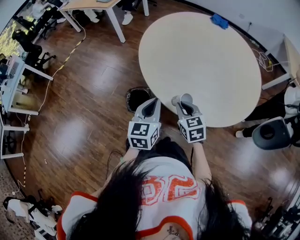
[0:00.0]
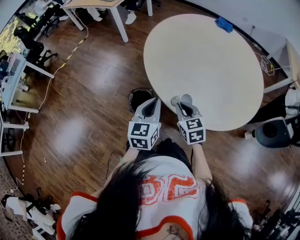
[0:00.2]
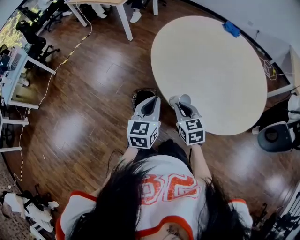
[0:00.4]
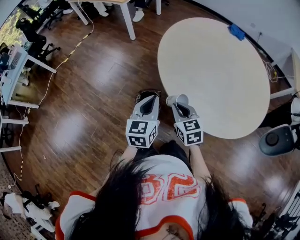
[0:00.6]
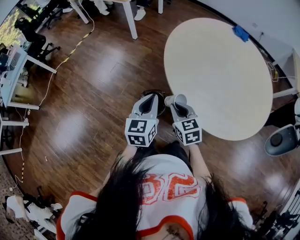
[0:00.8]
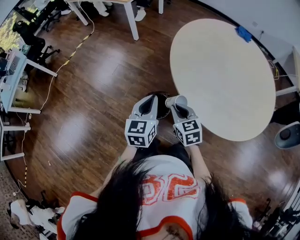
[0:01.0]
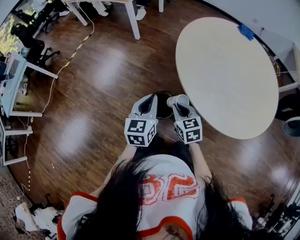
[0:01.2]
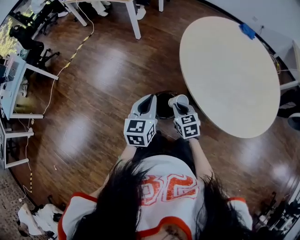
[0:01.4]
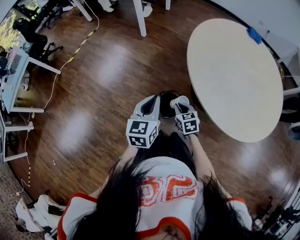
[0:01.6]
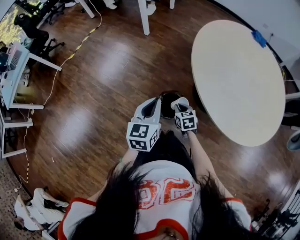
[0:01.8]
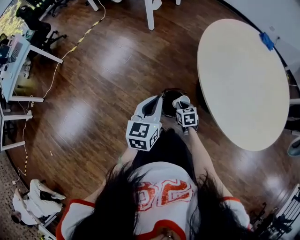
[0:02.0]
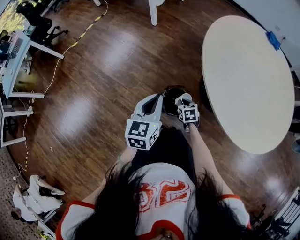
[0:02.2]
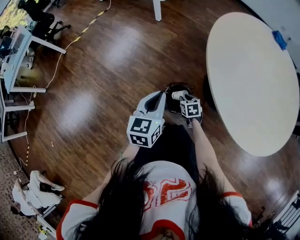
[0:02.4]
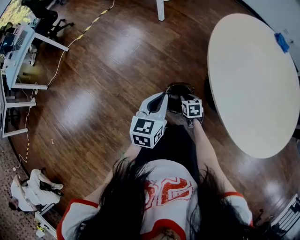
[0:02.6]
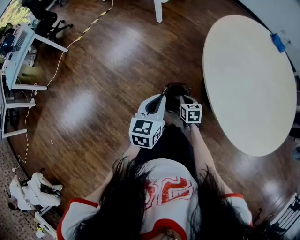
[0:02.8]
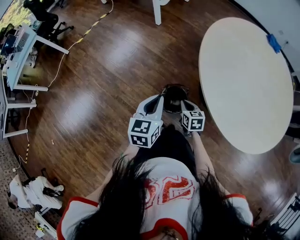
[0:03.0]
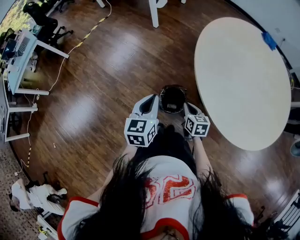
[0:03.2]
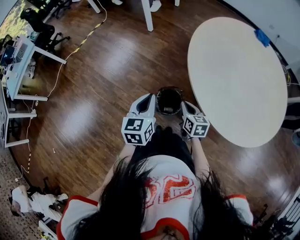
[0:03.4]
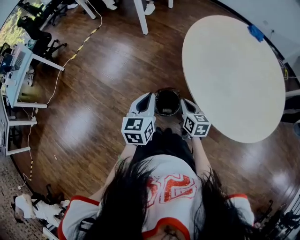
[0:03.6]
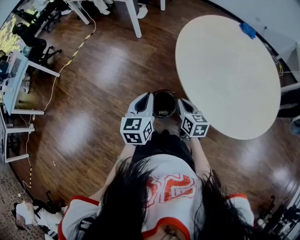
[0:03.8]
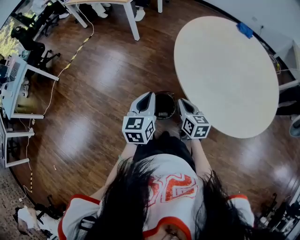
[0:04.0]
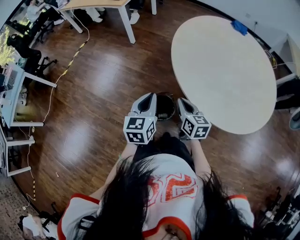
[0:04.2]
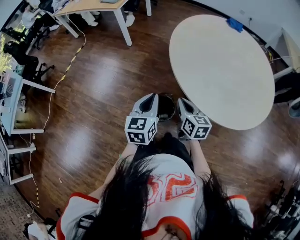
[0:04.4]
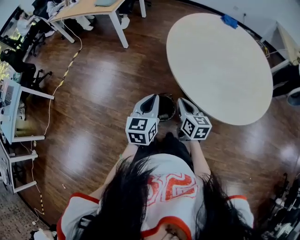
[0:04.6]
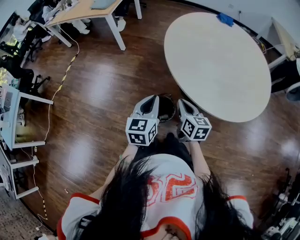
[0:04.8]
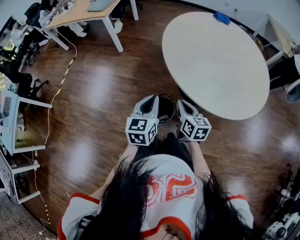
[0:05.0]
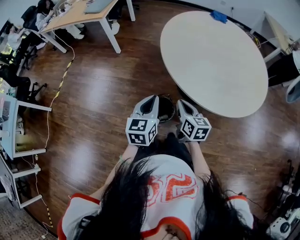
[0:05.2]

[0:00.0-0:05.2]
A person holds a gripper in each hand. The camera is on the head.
0:00.0 to 0:01.8: The left gripper moves to the left and forward, roughly 25 cm; the right gripper shifts about 30 cm to the left, downward and forward.
0:01.8 to 0:03.4: The right gripper shifts about 10 cm upward, and turns by some 20 degrees.
0:03.4 to 0:05.2: The left gripper moves approximately 5 cm, and changes its angle by approximately 20 degrees. The right gripper travels upward by about 10 cm, and swivels some 20 degrees.

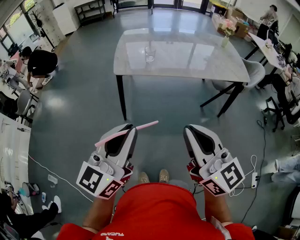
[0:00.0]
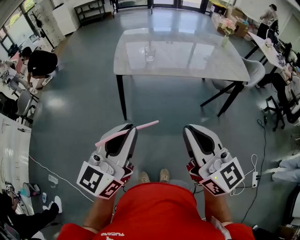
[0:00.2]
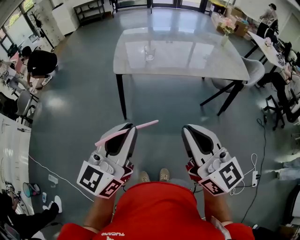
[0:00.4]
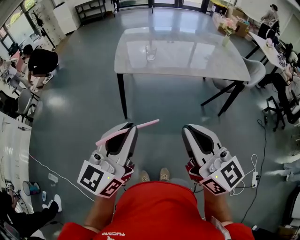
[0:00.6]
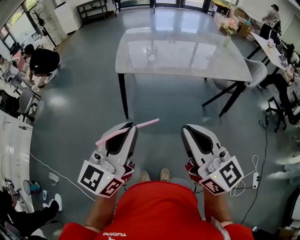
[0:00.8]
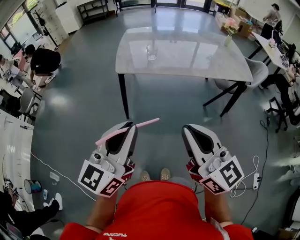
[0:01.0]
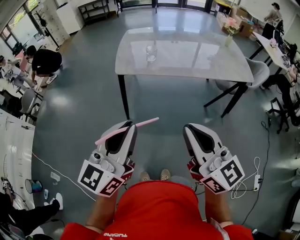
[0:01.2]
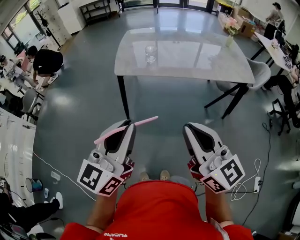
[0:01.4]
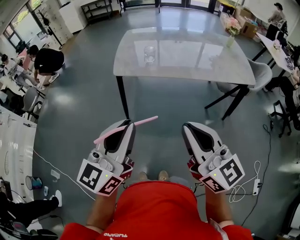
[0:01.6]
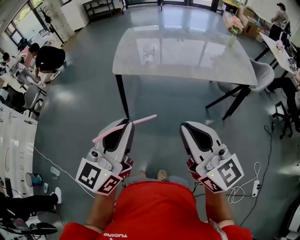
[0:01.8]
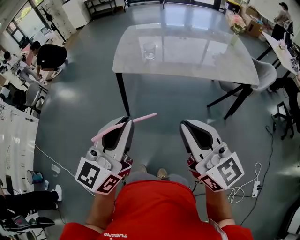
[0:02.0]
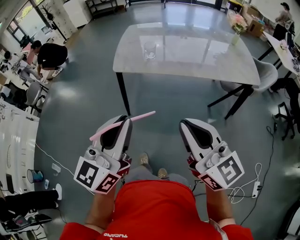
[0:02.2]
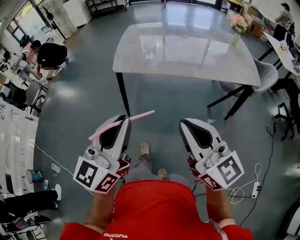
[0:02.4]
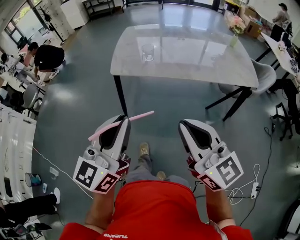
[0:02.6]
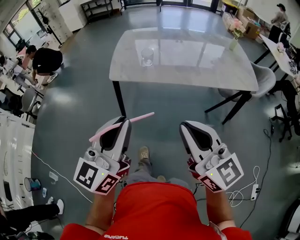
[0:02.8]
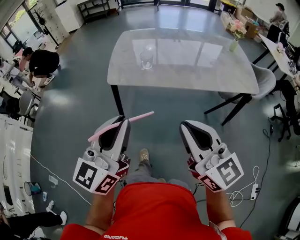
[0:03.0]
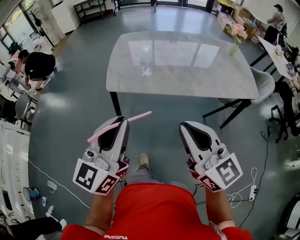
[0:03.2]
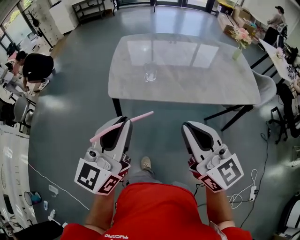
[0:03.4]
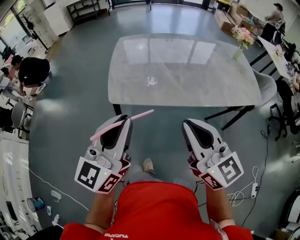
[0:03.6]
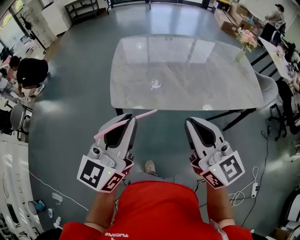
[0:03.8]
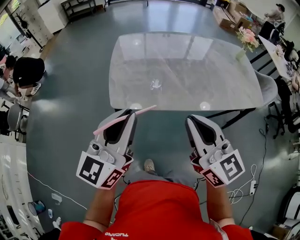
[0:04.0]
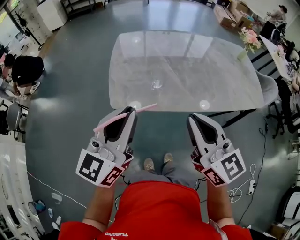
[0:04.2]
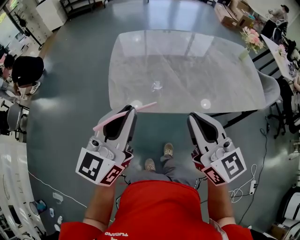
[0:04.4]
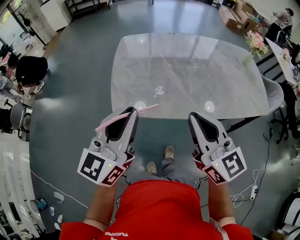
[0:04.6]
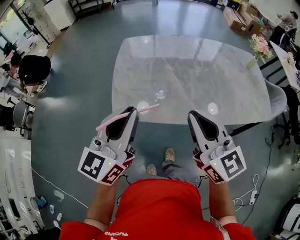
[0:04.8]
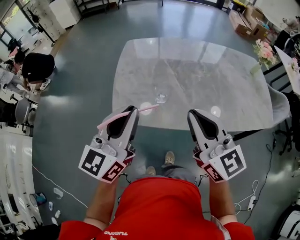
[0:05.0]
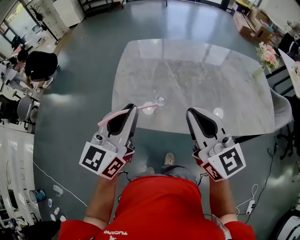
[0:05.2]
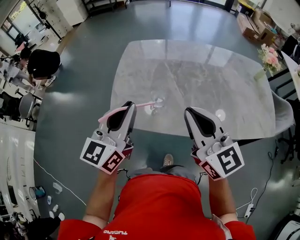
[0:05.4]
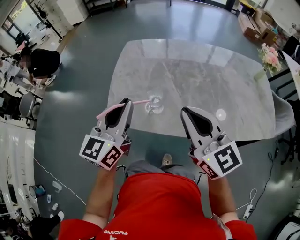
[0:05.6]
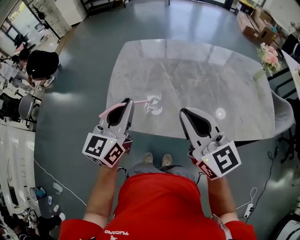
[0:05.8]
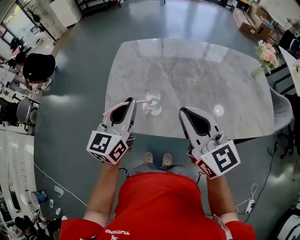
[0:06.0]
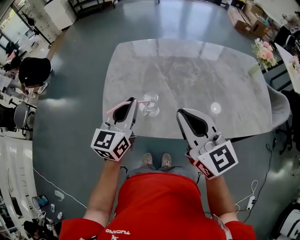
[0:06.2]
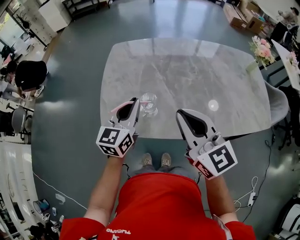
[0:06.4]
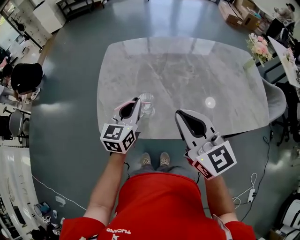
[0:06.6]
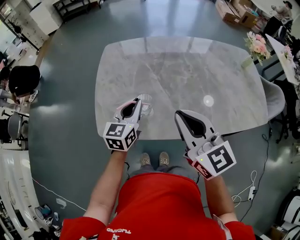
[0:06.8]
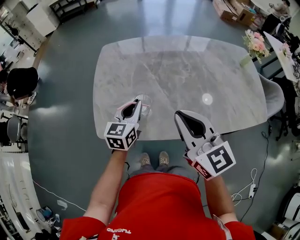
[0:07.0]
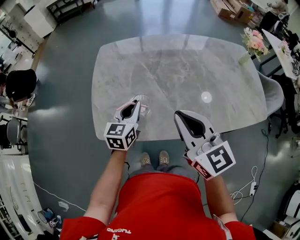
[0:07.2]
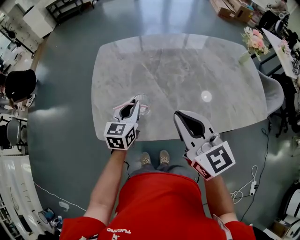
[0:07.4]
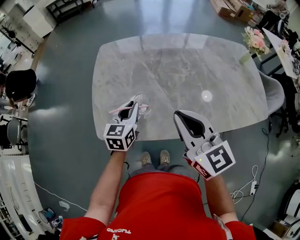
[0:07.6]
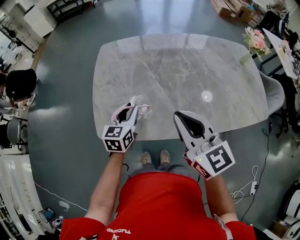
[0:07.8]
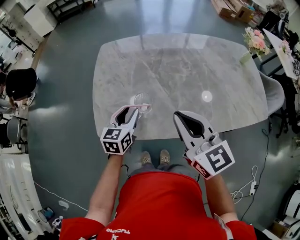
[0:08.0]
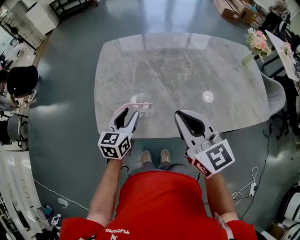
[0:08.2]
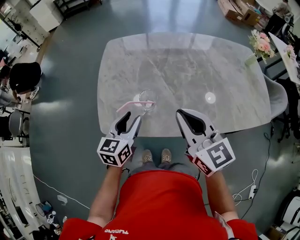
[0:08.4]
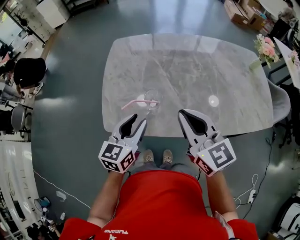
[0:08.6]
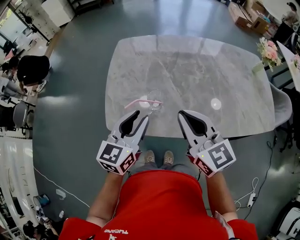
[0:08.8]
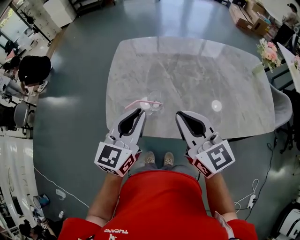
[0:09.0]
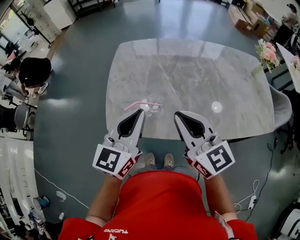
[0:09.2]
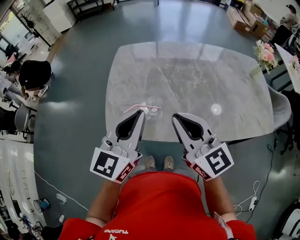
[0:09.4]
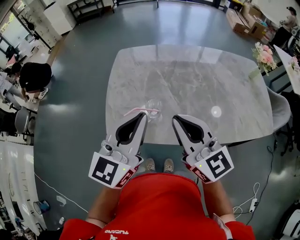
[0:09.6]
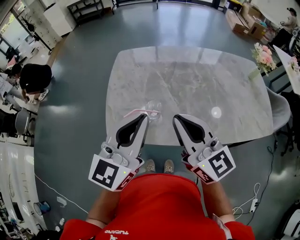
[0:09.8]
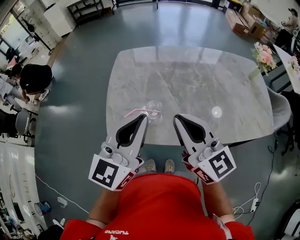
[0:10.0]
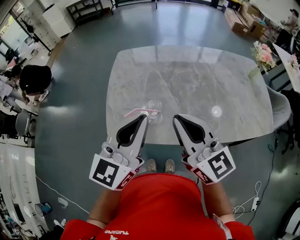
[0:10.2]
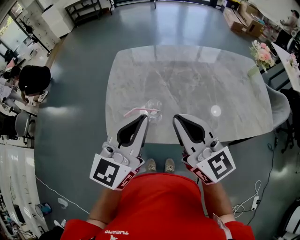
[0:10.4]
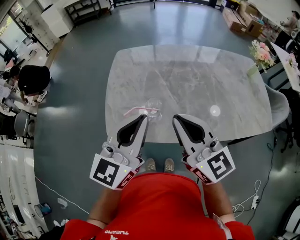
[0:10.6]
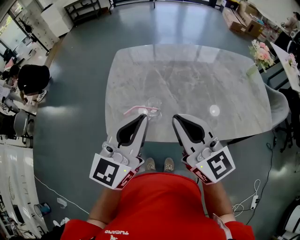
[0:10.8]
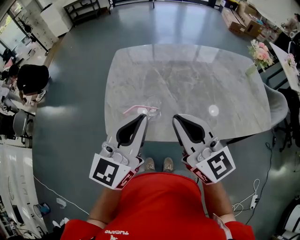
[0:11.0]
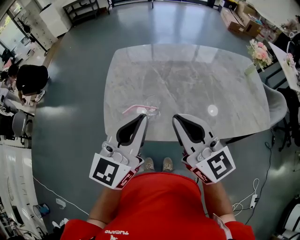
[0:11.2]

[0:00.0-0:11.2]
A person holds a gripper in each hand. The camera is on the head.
0:00.0 to 0:01.6: Both grippers travel together to the right, roughly 5 cm.
0:01.6 to 0:03.2: Both grippers move forward, about 15 cm.
0:03.2 to 0:04.8: Both grippers travel together forward, roughly 25 cm.
0:04.8 to 0:06.4: The right gripper moves forward, roughly 10 cm, while the left gripper shifts about 20 cm forward, downward and to the right.
0:06.4 to 0:08.0: The left gripper moves downward, about 10 cm, and opens.
0:08.0 to 0:09.6: The left gripper travels upward by approximately 25 cm, rotates approximately 30 degrees, and closes its fingers, while the right gripper changes place by about 5 cm.
0:09.6 to 0:11.2: There are only small adjustments of the grippers.

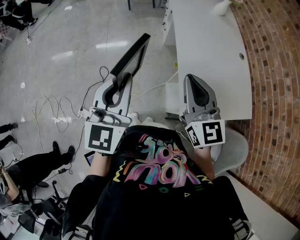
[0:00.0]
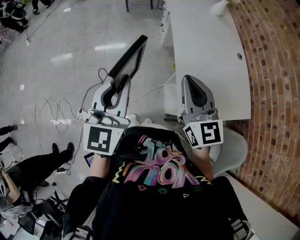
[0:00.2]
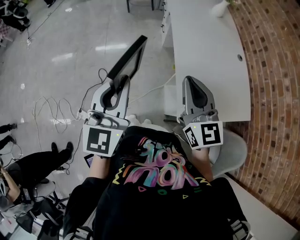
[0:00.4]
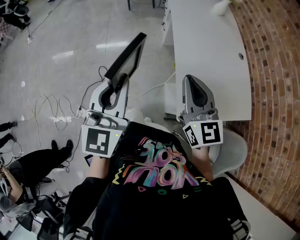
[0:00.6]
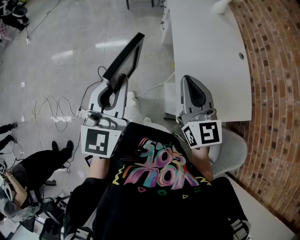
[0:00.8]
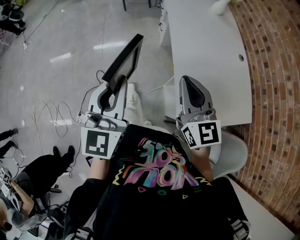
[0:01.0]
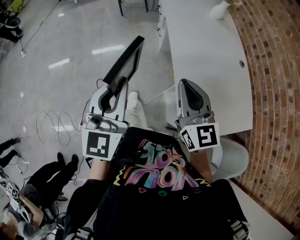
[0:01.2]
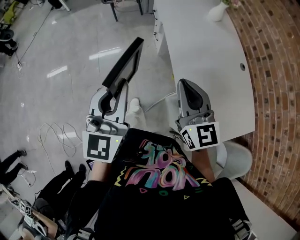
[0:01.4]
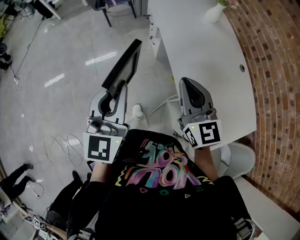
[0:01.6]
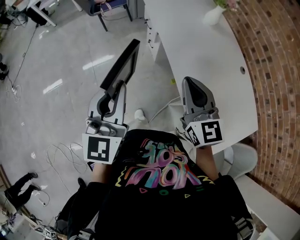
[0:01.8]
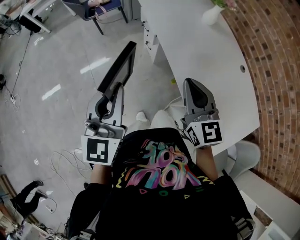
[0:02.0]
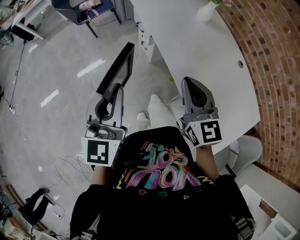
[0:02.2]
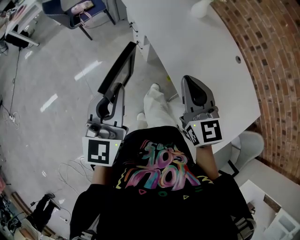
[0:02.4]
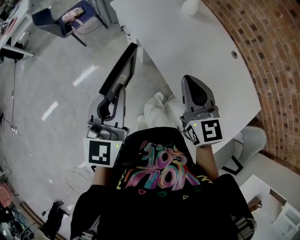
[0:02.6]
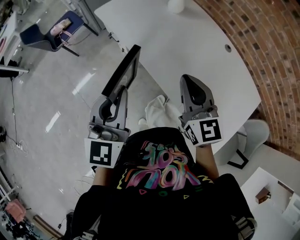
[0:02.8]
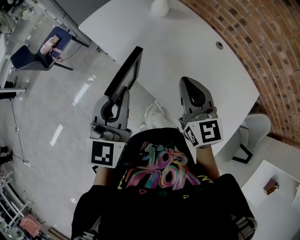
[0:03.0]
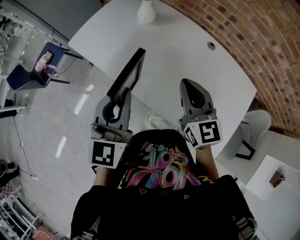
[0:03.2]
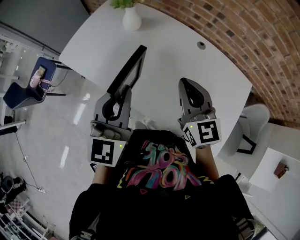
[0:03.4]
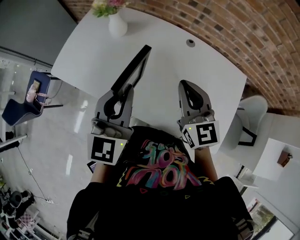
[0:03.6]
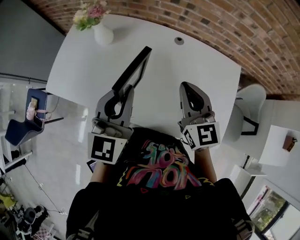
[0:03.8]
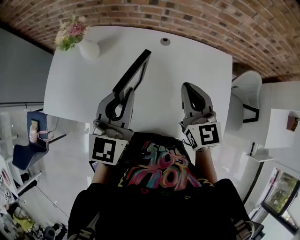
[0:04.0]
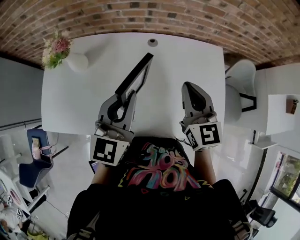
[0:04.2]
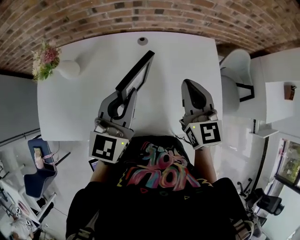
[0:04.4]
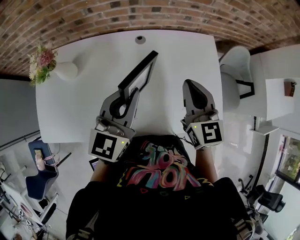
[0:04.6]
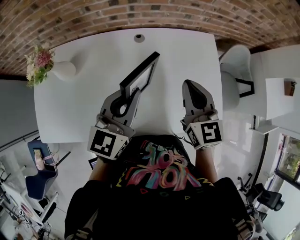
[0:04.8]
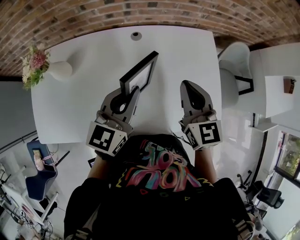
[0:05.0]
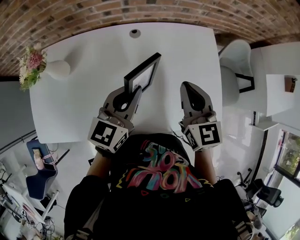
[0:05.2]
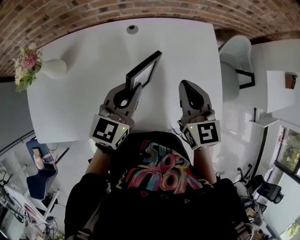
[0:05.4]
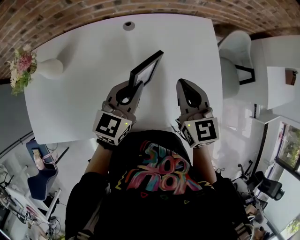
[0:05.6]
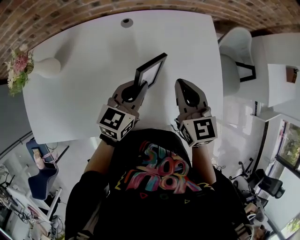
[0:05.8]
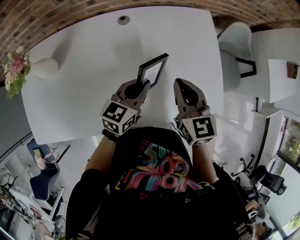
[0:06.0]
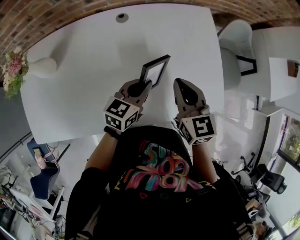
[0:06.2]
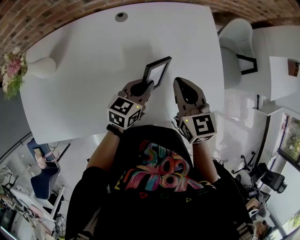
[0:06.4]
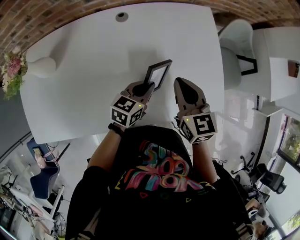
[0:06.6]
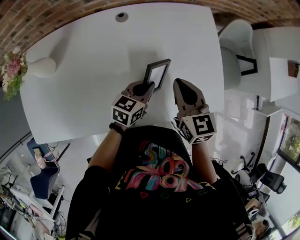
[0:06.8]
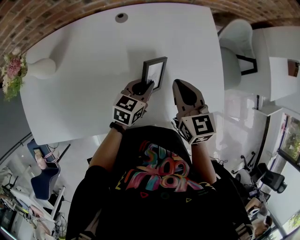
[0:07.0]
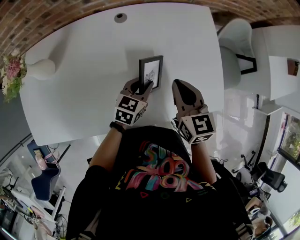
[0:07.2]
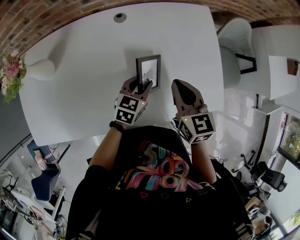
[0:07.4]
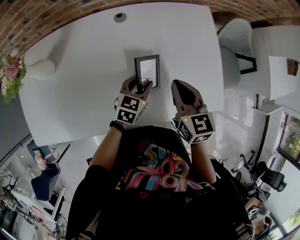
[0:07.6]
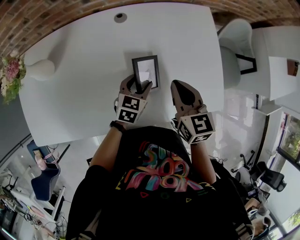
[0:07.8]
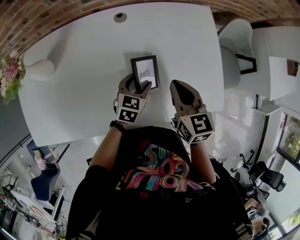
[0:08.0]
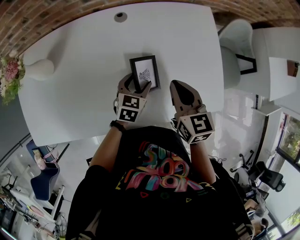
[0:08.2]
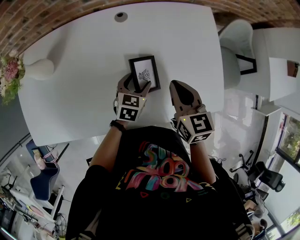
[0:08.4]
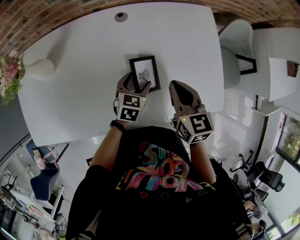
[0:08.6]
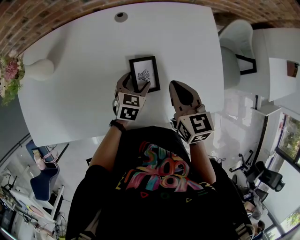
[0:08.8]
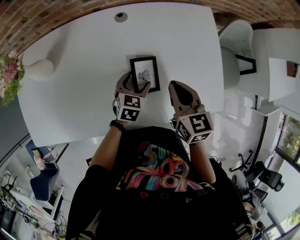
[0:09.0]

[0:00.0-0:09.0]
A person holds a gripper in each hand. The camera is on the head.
0:00.0 to 0:01.6: Both grippers travel together forward, roughly 30 cm.
0:01.6 to 0:03.0: The left gripper shifts by some 30 cm, and rotates roughly 30 degrees. The right gripper changes place by approximately 20 cm, and swivels some 30 degrees.
0:03.0 to 0:04.4: The right gripper changes place by some 25 cm, and turns by some 50 degrees; the left gripper shifts by about 35 cm, and swivels roughly 50 degrees.
0:04.4 to 0:06.0: The right gripper shifts some 10 cm downward. The left gripper moves downward and to the right, approximately 25 cm, and turns by roughly 30 degrees.
0:06.0 to 0:07.6: The left gripper shifts approximately 10 cm downward, and opens its fingers.
0:07.6 to 0:09.0: The left gripper opens its fingers.
